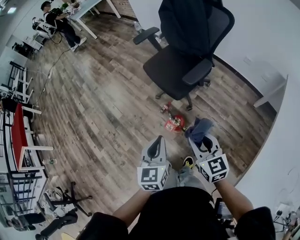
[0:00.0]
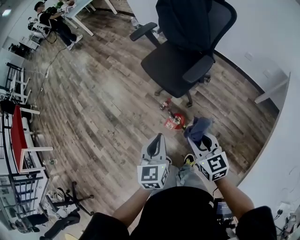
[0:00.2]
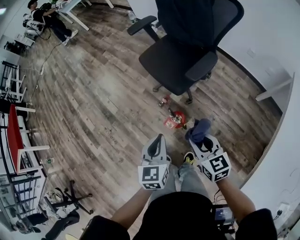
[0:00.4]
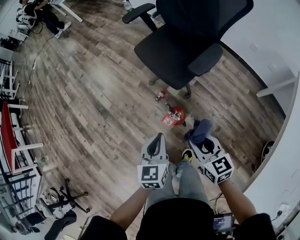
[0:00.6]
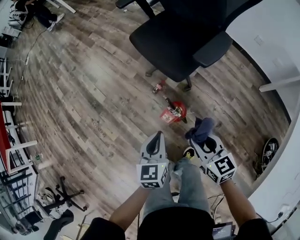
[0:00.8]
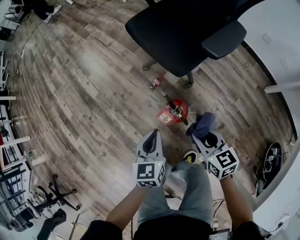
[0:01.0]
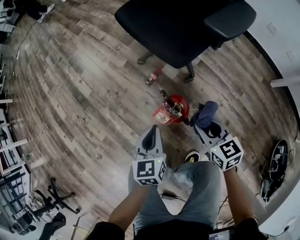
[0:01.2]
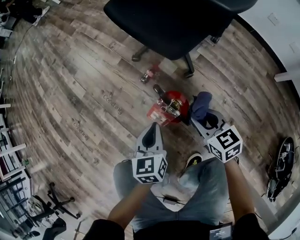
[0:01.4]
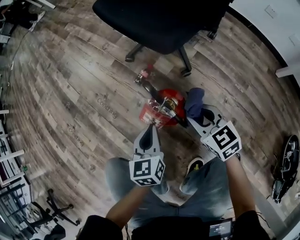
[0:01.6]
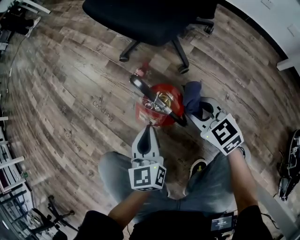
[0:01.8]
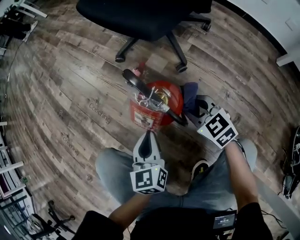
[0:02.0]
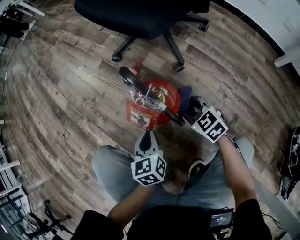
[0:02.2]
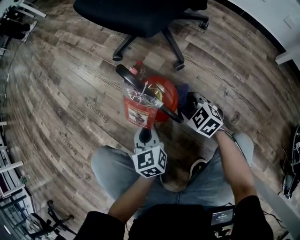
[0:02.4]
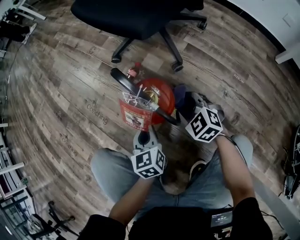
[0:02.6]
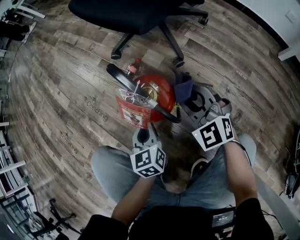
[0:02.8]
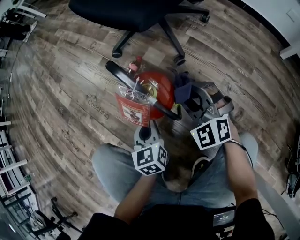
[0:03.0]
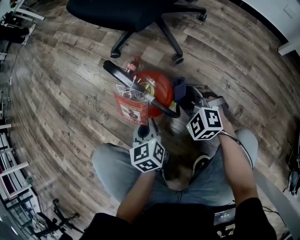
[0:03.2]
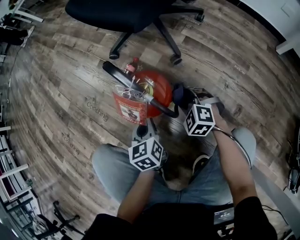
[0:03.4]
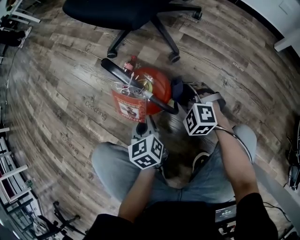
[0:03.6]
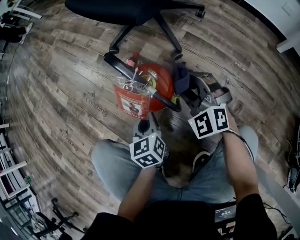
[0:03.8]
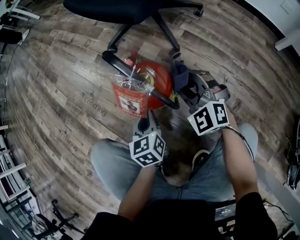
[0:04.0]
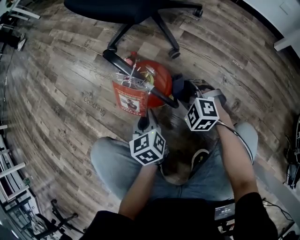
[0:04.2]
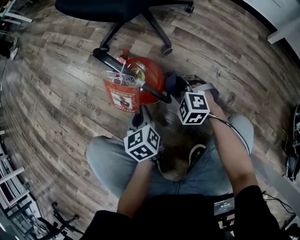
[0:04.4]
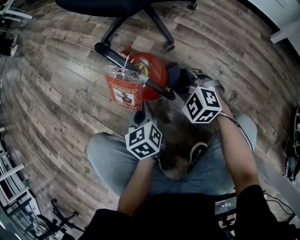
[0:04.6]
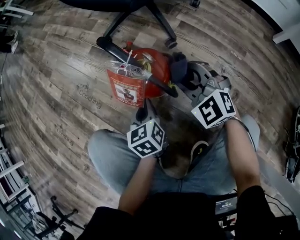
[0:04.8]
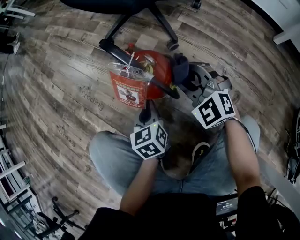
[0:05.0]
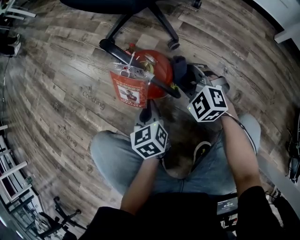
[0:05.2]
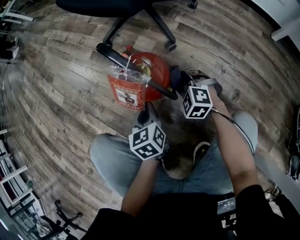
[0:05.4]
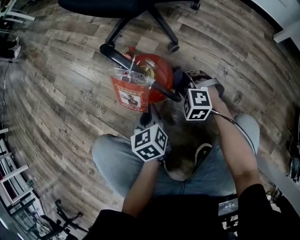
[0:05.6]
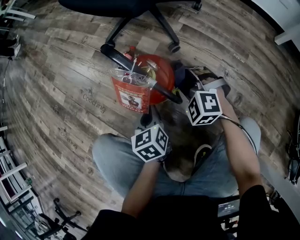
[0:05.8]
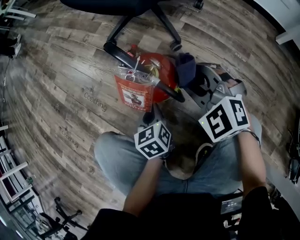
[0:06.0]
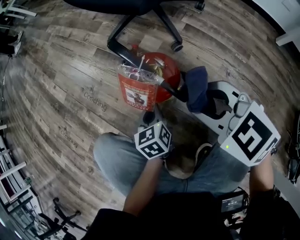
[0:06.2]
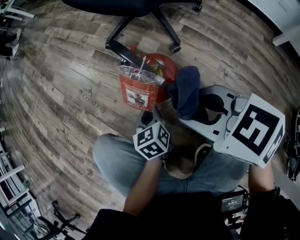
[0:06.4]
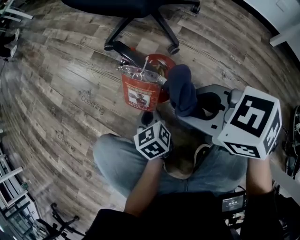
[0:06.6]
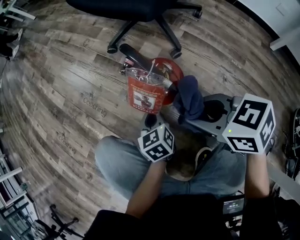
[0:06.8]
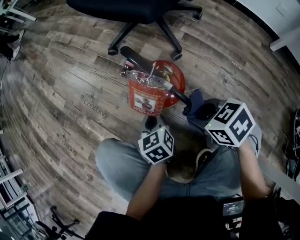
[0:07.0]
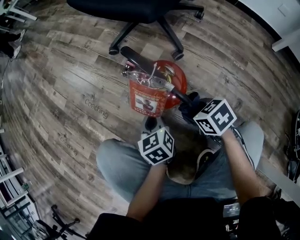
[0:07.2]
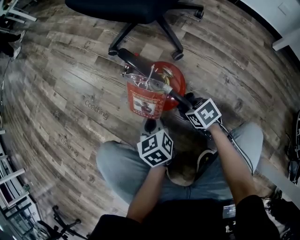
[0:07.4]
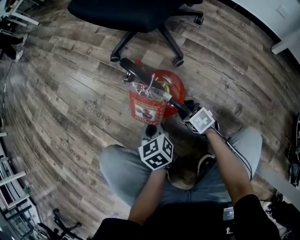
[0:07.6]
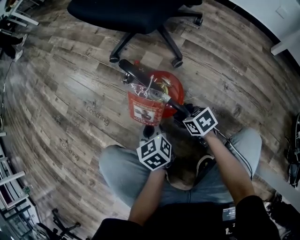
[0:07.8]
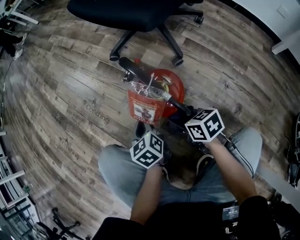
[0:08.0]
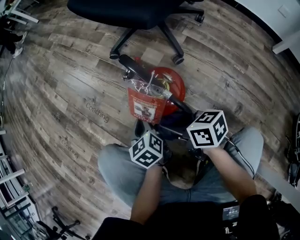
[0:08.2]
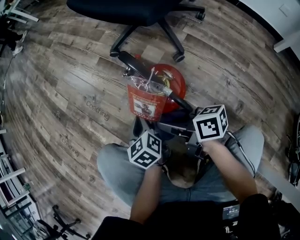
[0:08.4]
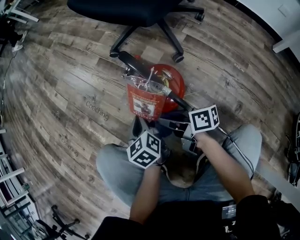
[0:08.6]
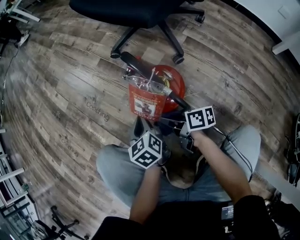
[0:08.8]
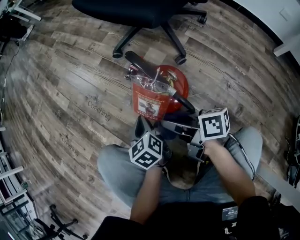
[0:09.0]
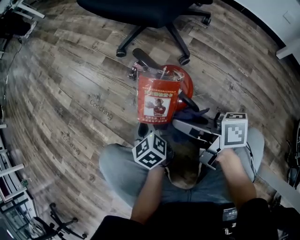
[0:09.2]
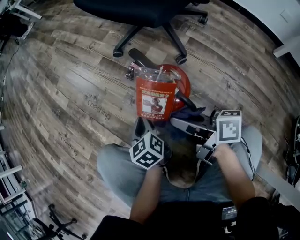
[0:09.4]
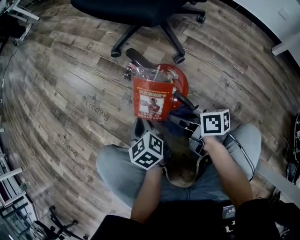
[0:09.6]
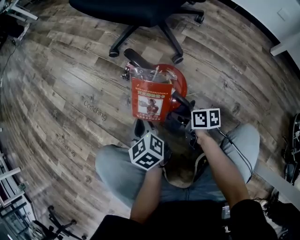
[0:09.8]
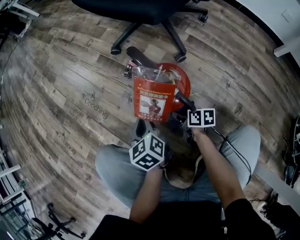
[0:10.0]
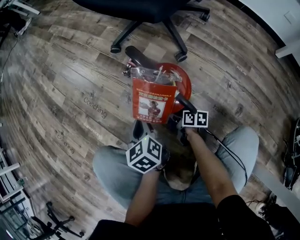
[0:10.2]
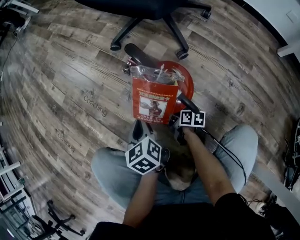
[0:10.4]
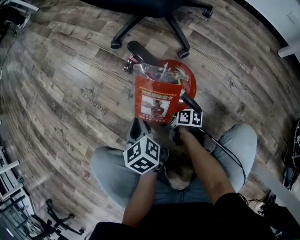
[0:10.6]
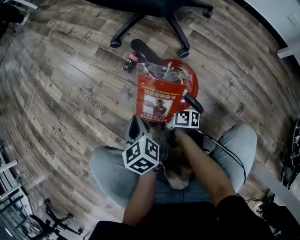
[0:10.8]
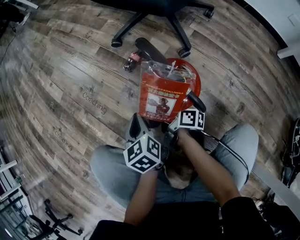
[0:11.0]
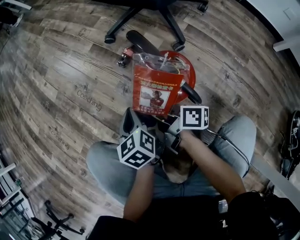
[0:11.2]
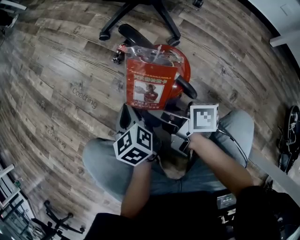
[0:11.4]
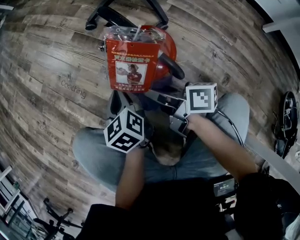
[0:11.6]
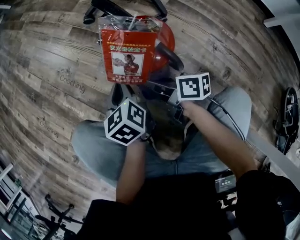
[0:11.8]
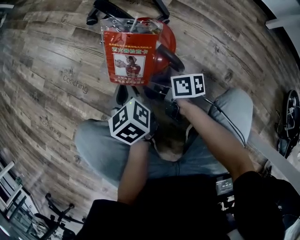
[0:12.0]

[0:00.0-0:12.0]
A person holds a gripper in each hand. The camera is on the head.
0:00.0 to 0:01.6: The grippers both shift downward by some 60 cm. The right gripper rotates some 20 degrees.
0:01.6 to 0:03.0: The left gripper goes some 15 cm downward; the right gripper shifts some 5 cm downward, and rolls counterclockwise, seen from behind, by roughly 40 degrees.
0:03.0 to 0:04.4: The right gripper swings up and down, about 15 cm each way, with 2 reversals, and swivels approximately 30 degrees.
0:04.4 to 0:06.0: The right gripper goes up and down, approximately 15 cm each way, reversing 2 times.
0:06.0 to 0:07.6: The right gripper is displaced downward by some 25 cm, and rolls clockwise, seen from behind, by some 50 degrees.
0:07.6 to 0:09.0: The left gripper shifts roughly 5 cm to the left. The right gripper swings up and down, some 20 cm each way, with 2 reversals, and points its fingers some 50 degrees further upward.
0:09.0 to 0:10.4: The right gripper moves downward, approximately 25 cm, and rotates approximately 30 degrees.
0:10.4 to 0:12.0: The right gripper moves upward, some 15 cm.

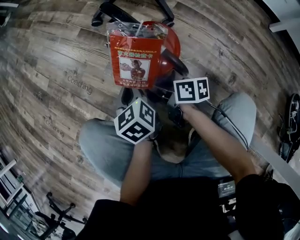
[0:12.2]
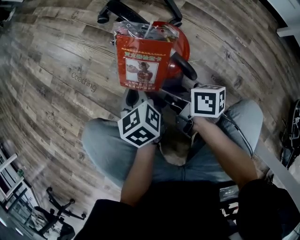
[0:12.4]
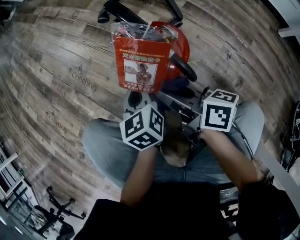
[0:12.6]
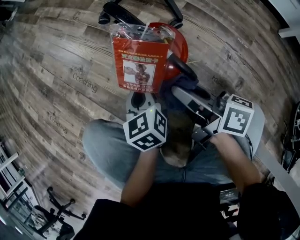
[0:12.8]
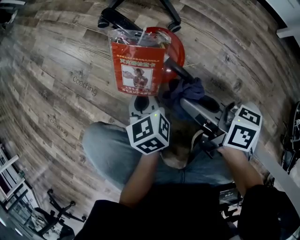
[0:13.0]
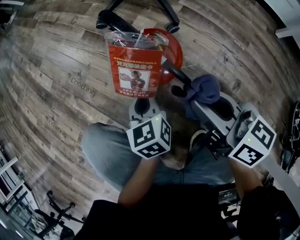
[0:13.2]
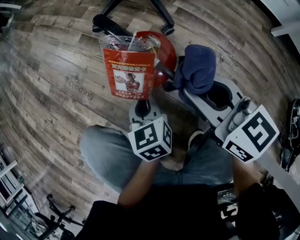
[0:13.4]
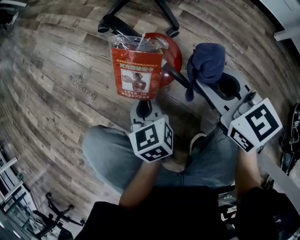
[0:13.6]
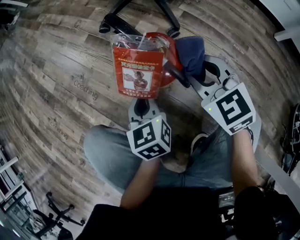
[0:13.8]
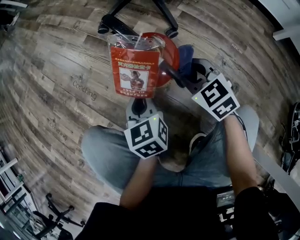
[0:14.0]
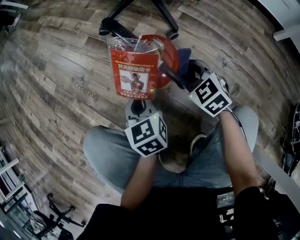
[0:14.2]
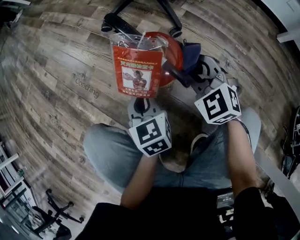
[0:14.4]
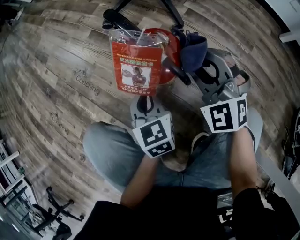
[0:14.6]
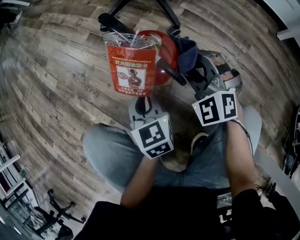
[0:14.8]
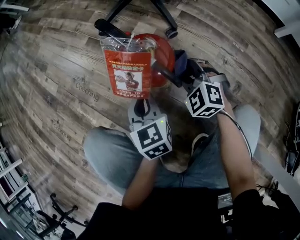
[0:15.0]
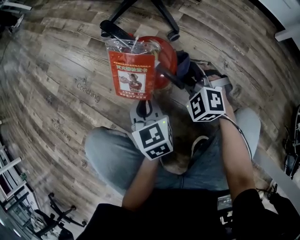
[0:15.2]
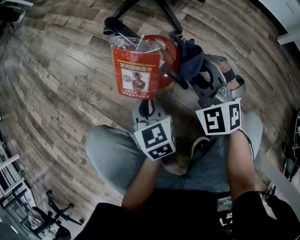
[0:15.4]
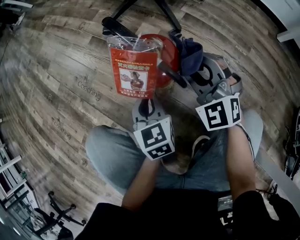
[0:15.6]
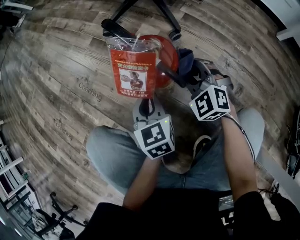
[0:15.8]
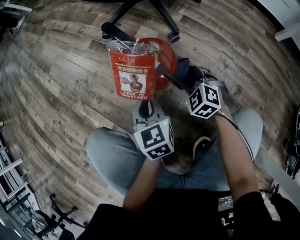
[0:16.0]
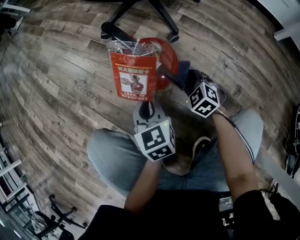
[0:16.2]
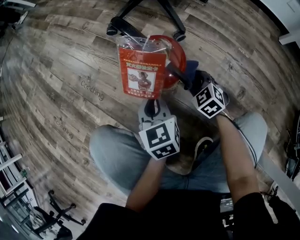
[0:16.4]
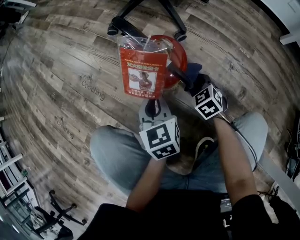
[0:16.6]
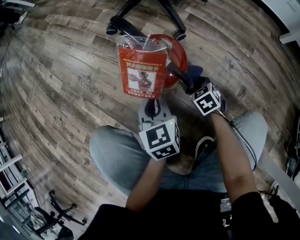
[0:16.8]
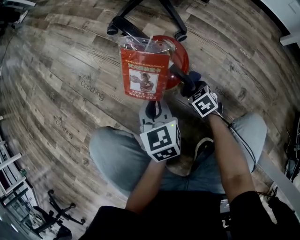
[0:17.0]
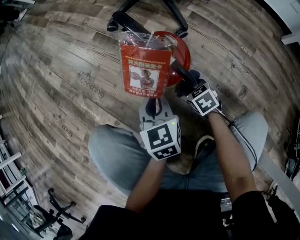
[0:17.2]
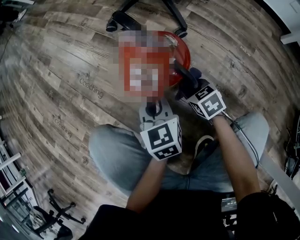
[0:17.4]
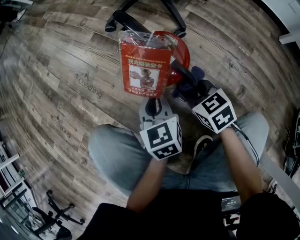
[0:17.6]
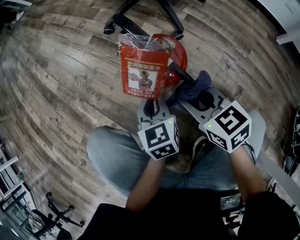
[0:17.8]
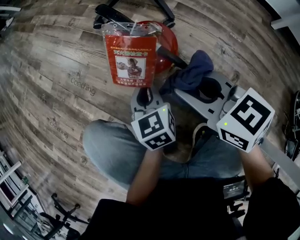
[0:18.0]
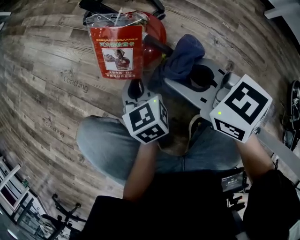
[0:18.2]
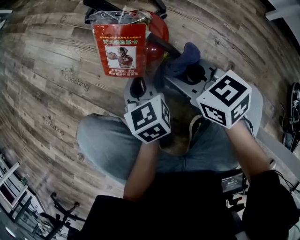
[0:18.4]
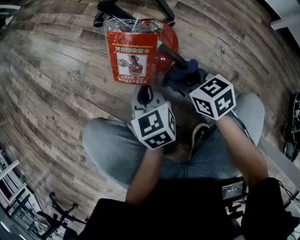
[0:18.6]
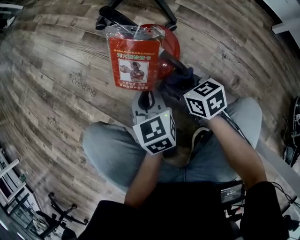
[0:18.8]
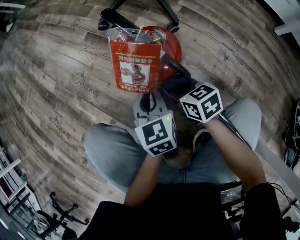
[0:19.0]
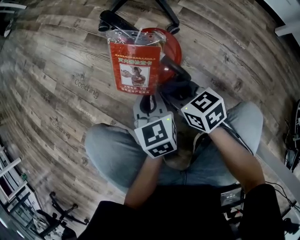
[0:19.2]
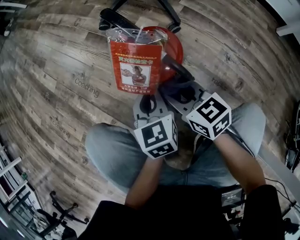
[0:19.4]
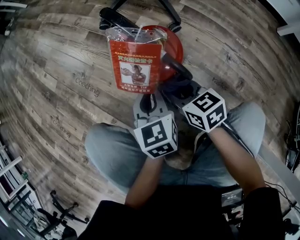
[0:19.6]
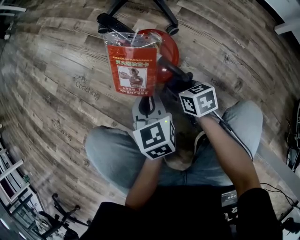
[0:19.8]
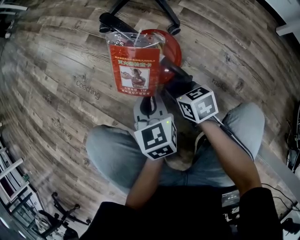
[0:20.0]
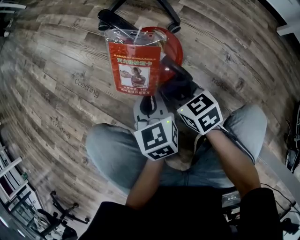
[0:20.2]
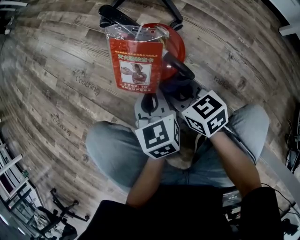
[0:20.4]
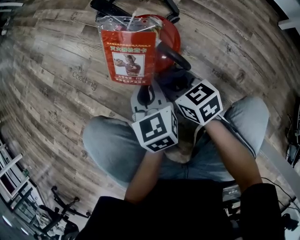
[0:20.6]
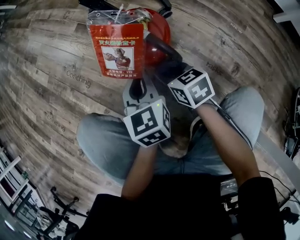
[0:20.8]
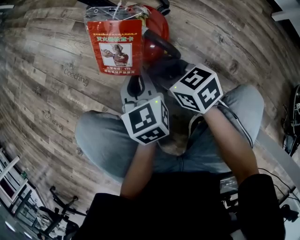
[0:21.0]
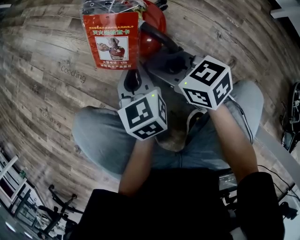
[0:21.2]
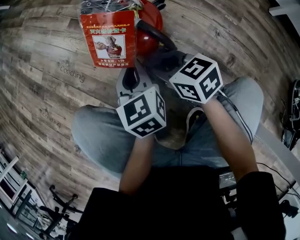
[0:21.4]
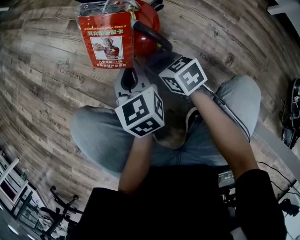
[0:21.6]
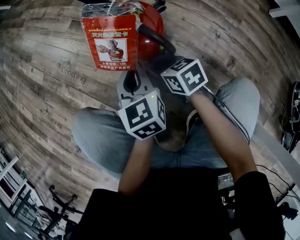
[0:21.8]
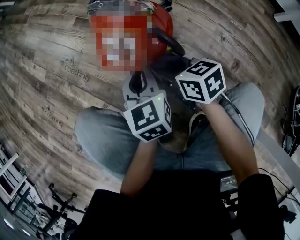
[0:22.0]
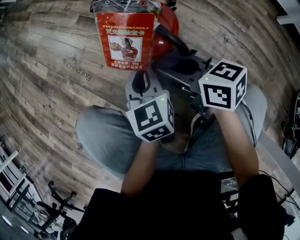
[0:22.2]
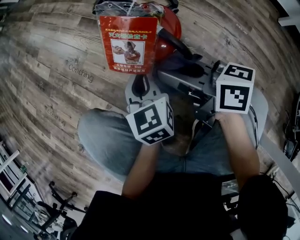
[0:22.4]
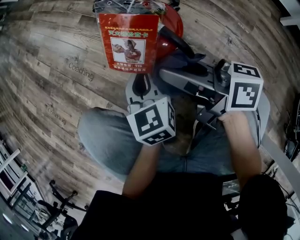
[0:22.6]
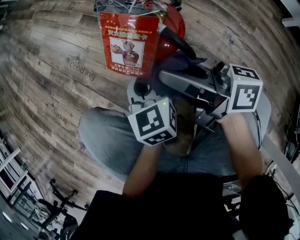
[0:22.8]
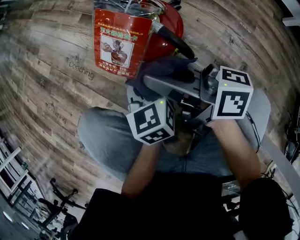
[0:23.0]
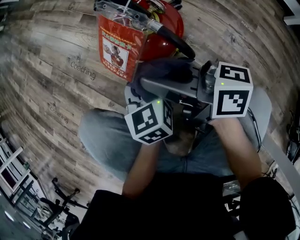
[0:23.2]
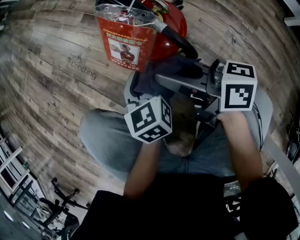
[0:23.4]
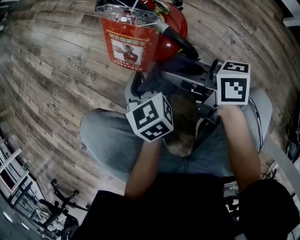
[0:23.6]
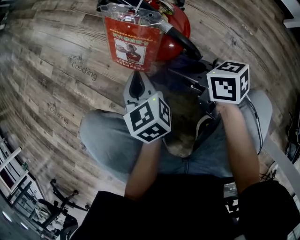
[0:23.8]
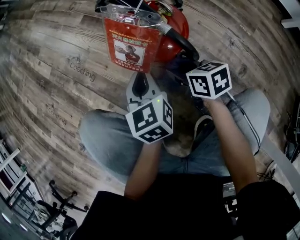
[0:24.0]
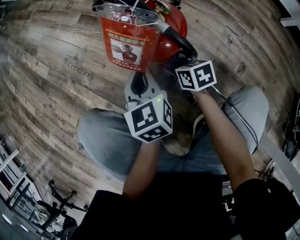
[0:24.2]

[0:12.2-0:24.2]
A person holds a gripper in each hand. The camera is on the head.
0:12.2 to 0:13.8: The right gripper heads upward and to the right, covering some 20 cm, and rotates around the line of its fingers by some 70 degrees, counterclockwise from behind, while the left gripper shifts by about 5 cm.
0:13.8 to 0:15.2: The right gripper swings up and down, about 10 cm each way, with 2 reversals, and changes its angle by about 30 degrees.
0:15.2 to 0:16.6: The right gripper shifts roughly 10 cm downward, and swivels some 40 degrees.
0:16.6 to 0:18.2: The right gripper moves upward, roughly 25 cm, and rotates roughly 30 degrees.
0:18.2 to 0:19.8: The right gripper moves up and down over about 20 cm, changing direction 2 times, and swivels approximately 30 degrees.
0:19.8 to 0:21.2: The right gripper moves up and down over roughly 10 cm, changing direction 2 times, and changes its angle by approximately 20 degrees.
0:21.2 to 0:22.6: The right gripper shifts about 10 cm upward, and turns by about 40 degrees.
0:22.6 to 0:24.2: The right gripper goes approximately 25 cm downward, and angles its fingers downward, by approximately 50 degrees.
